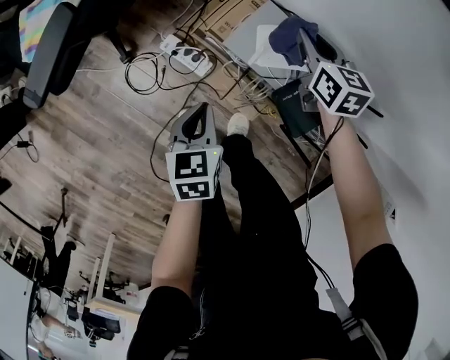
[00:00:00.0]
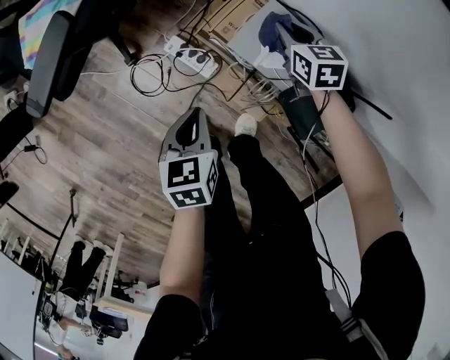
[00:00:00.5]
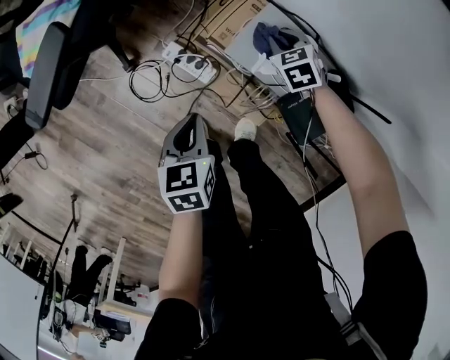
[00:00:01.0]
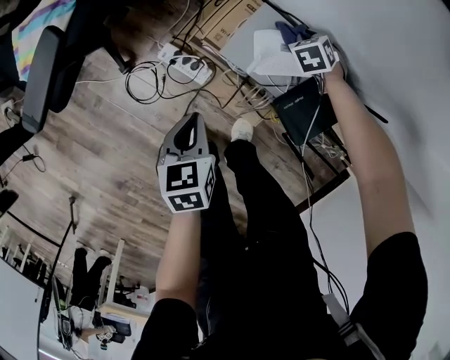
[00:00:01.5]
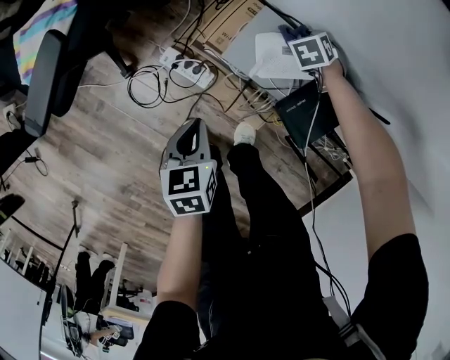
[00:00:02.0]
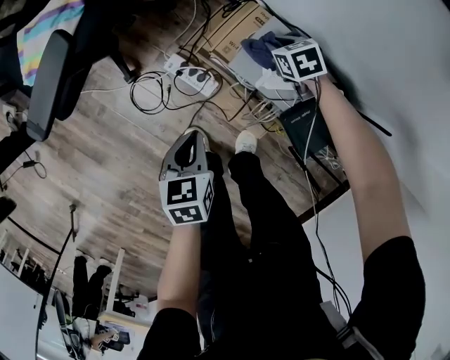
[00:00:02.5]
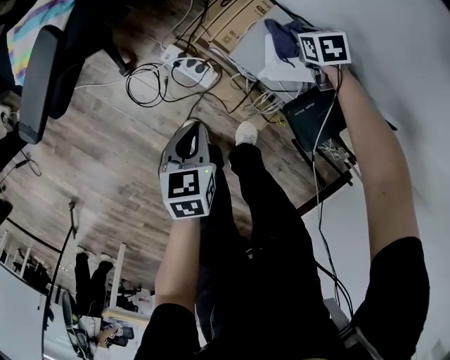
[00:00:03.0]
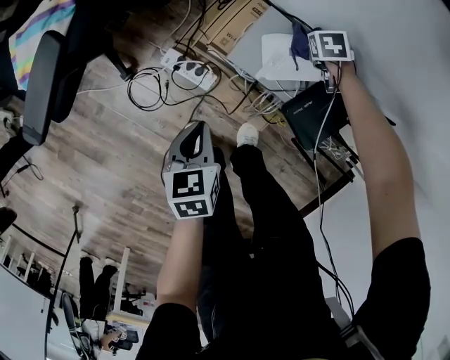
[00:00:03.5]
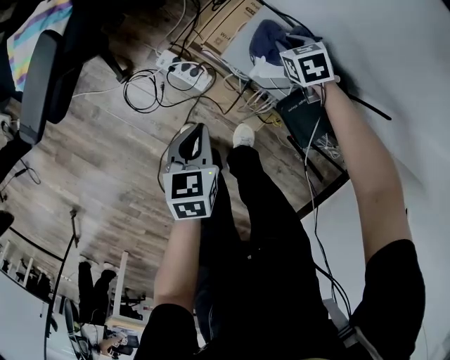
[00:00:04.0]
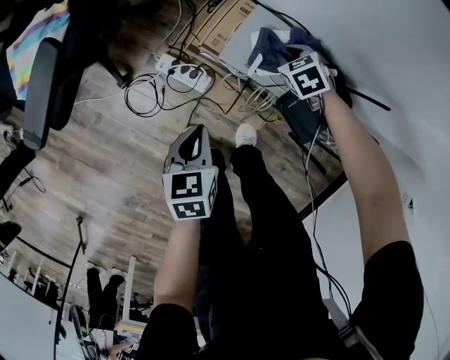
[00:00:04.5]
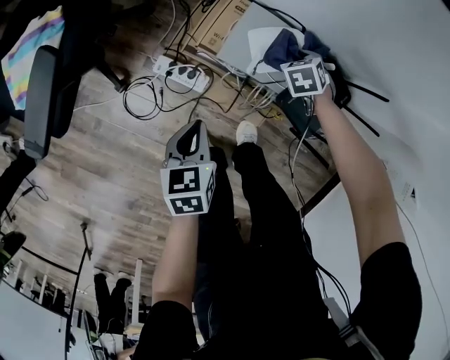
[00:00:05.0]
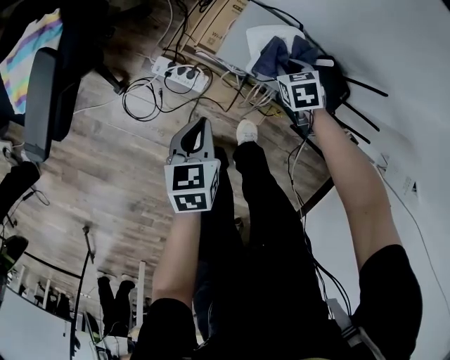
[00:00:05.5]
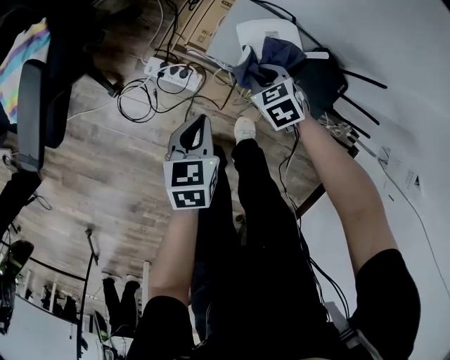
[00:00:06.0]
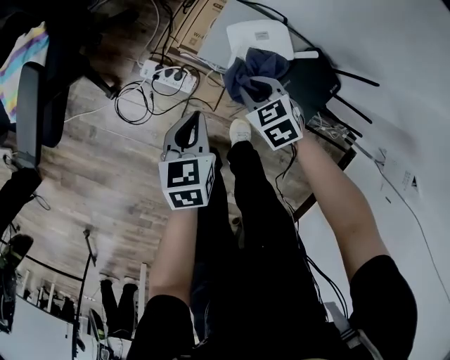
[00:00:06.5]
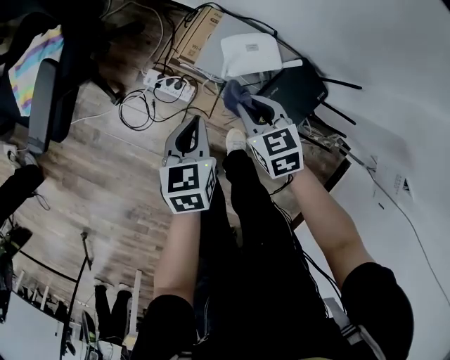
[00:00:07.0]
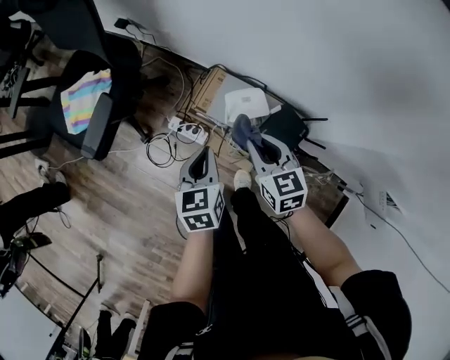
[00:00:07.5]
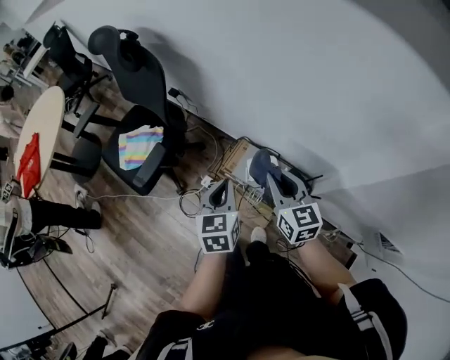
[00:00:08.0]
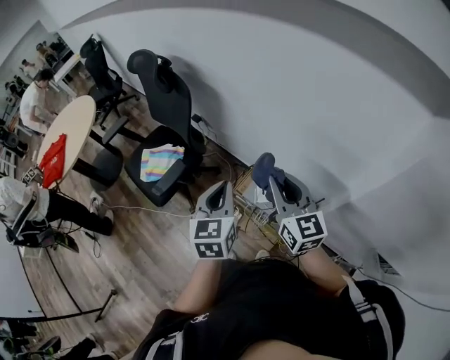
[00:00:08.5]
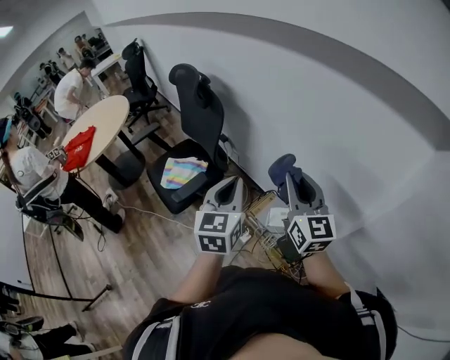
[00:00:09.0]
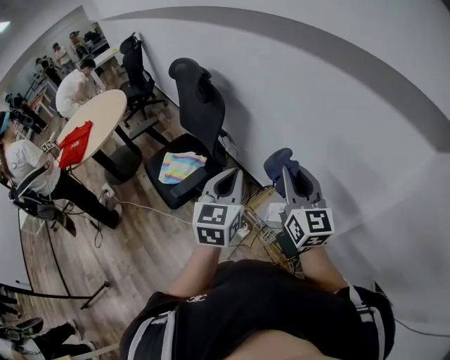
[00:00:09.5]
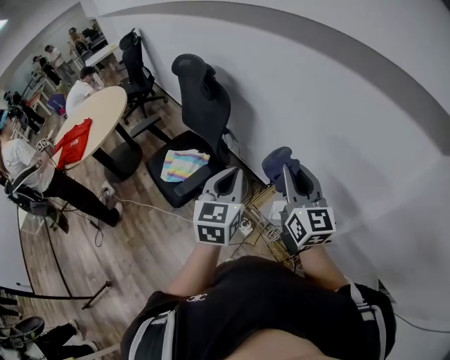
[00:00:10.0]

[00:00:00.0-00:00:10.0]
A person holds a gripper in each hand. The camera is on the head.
00:00:00.0 to 00:00:02.0: The right gripper heads downward, covering about 15 cm, and angles its fingers downward, by approximately 30 degrees.
00:00:02.0 to 00:00:04.0: The right gripper moves roughly 10 cm, and changes its angle by about 20 degrees.
00:00:04.0 to 00:00:06.0: The right gripper changes place by approximately 15 cm.
00:00:06.0 to 00:00:08.0: Both grippers travel together upward, about 50 cm. The right gripper angles its fingers upward, by roughly 50 degrees; the left gripper rotates roughly 30 degrees.
00:00:08.0 to 00:00:10.0: Both grippers move upward, some 25 cm. The right gripper changes its angle by some 20 degrees.

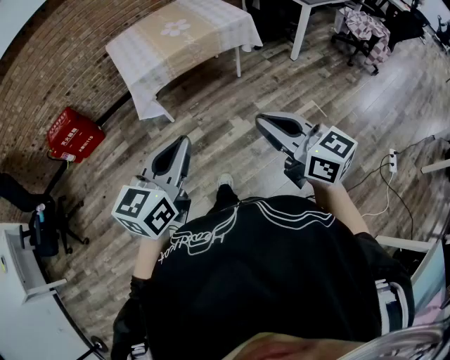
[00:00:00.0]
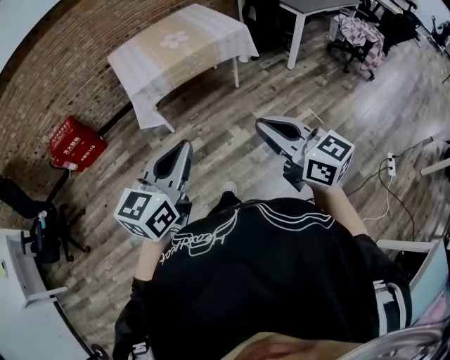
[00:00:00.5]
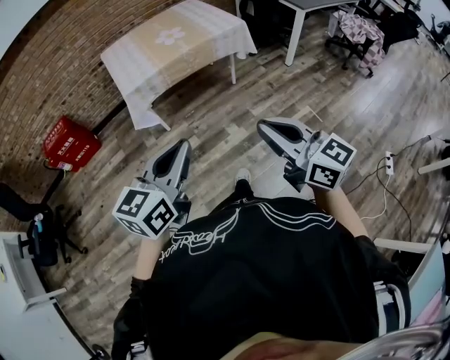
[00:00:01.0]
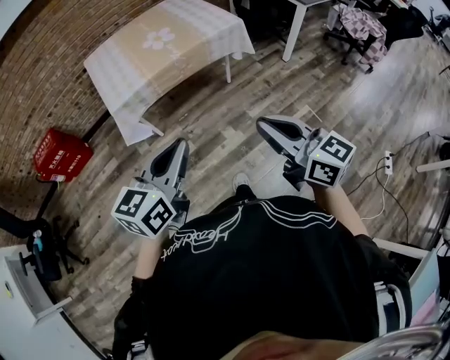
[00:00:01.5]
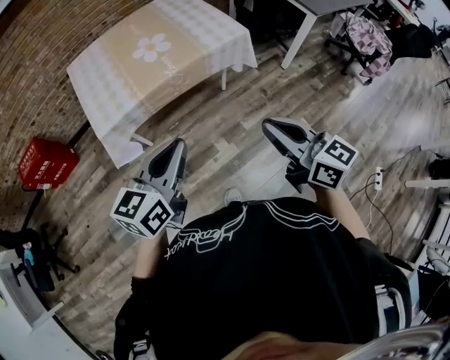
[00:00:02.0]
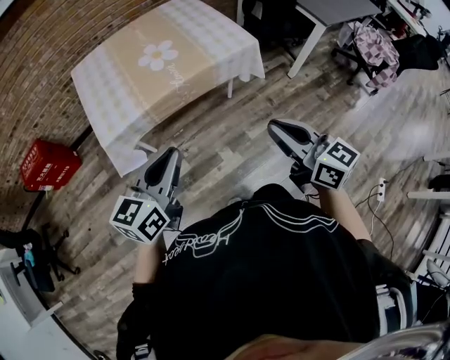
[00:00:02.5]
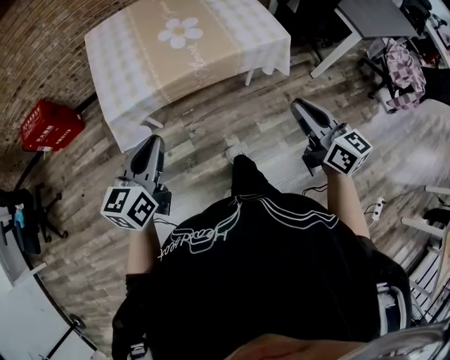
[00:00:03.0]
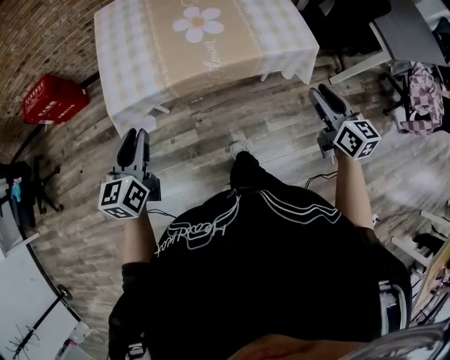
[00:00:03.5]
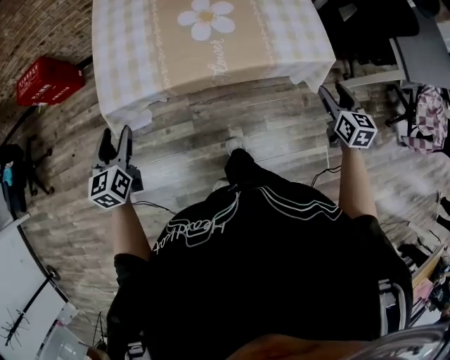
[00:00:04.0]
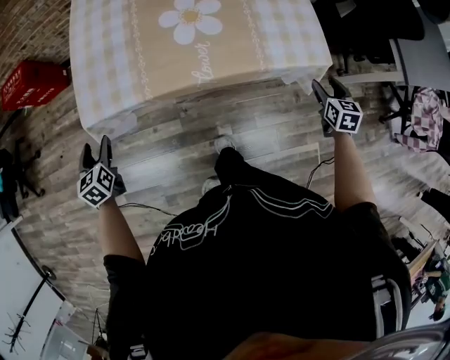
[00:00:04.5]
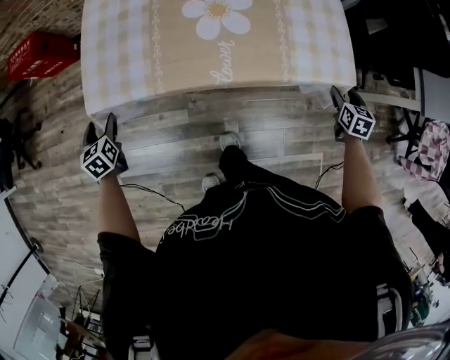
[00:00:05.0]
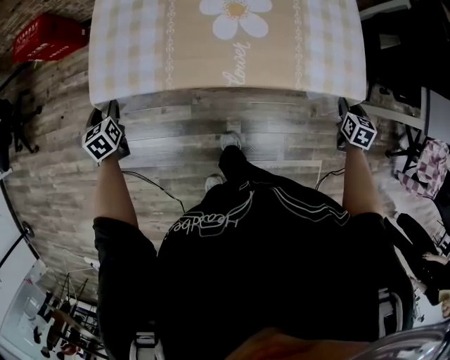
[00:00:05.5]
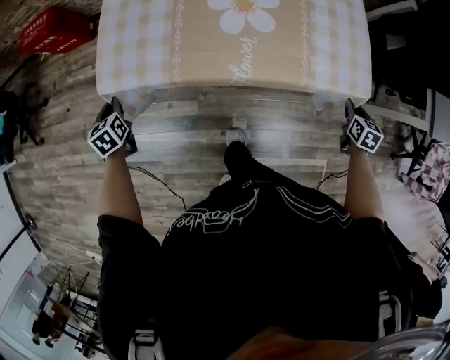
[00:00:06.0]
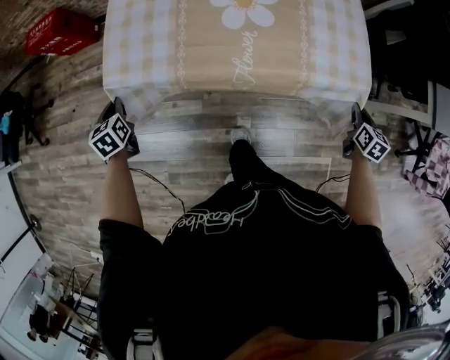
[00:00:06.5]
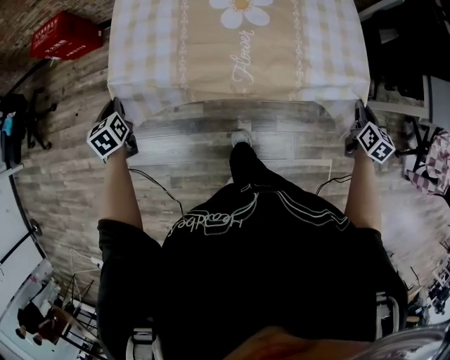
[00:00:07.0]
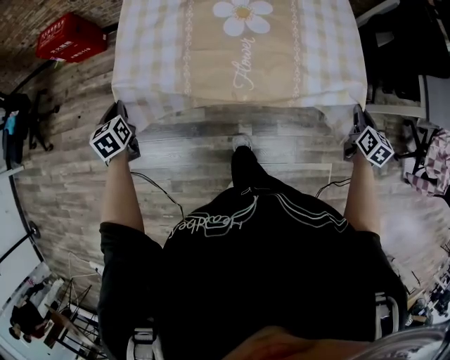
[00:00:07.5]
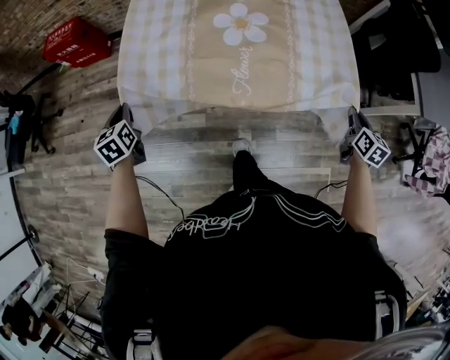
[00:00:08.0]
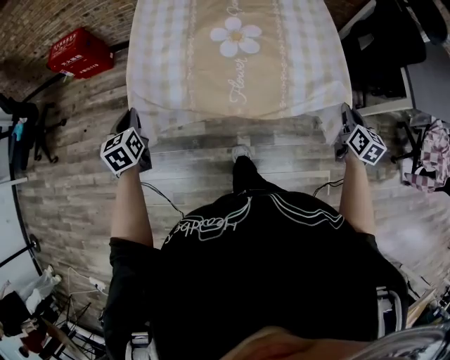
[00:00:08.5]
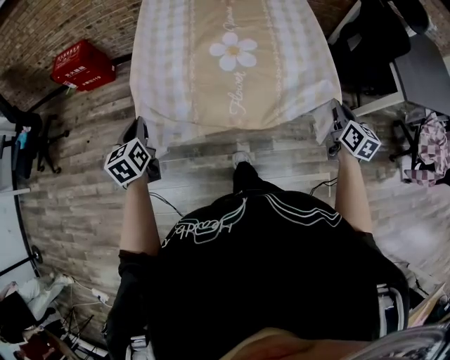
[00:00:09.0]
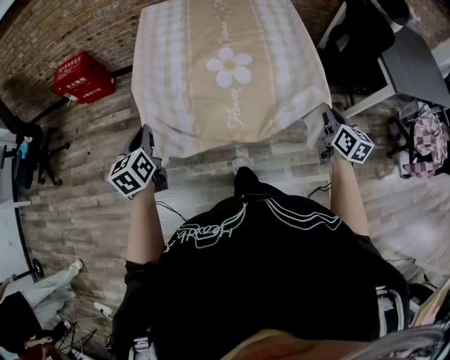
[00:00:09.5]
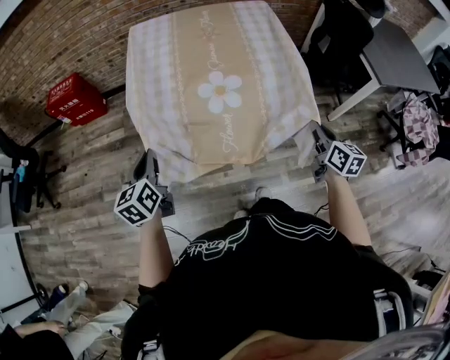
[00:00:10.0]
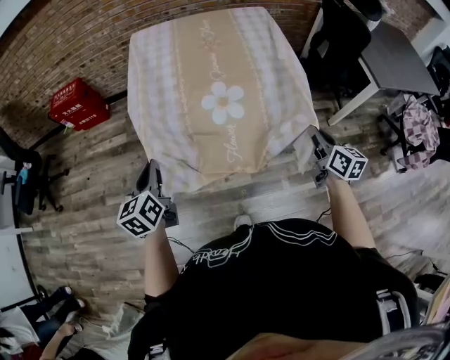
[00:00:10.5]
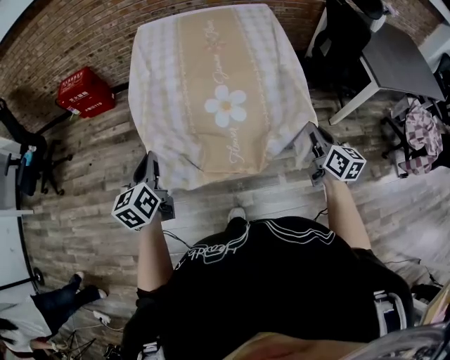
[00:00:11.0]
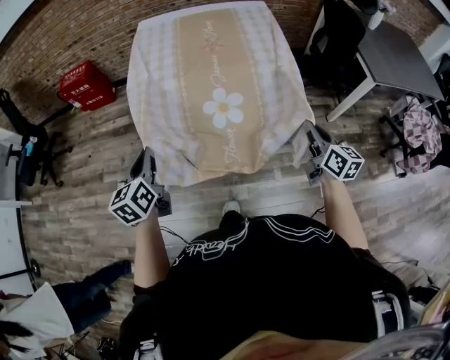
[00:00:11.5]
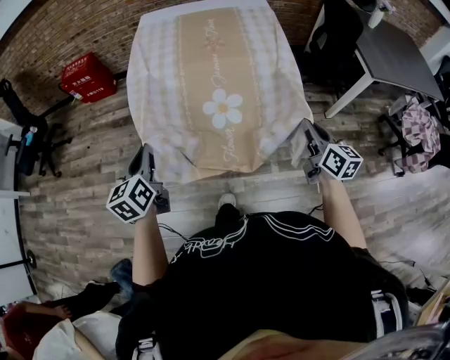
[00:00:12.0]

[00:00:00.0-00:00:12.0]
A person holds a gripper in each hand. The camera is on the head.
00:00:00.0 to 00:00:02.0: Both grippers travel together forward, approximately 30 cm.
00:00:02.0 to 00:00:04.0: The right gripper shifts some 50 cm forward, downward and to the right, rotates approximately 30 degrees, and opens. Meanwhile the left gripper shifts approximately 35 cm to the left, forward and downward, rotates some 50 degrees, and opens.
00:00:04.0 to 00:00:06.0: The right gripper heads downward, to the right and forward, covering some 20 cm, and closes up, while the left gripper shifts approximately 20 cm downward, to the left and forward, changes its angle by roughly 30 degrees, and closes its fingers.
00:00:06.0 to 00:00:08.0: Both grippers travel together upward and backward, approximately 15 cm.
00:00:08.0 to 00:00:10.0: The left gripper goes some 25 cm backward, upward and to the right, and changes its angle by about 30 degrees, while the right gripper shifts about 25 cm backward, to the left and upward.
00:00:10.0 to 00:00:12.0: Both grippers travel together backward, roughly 15 cm.

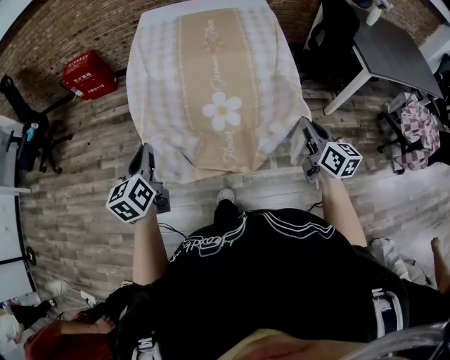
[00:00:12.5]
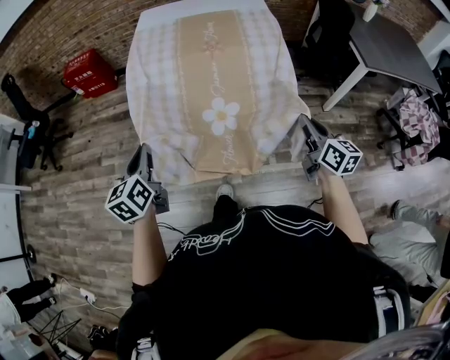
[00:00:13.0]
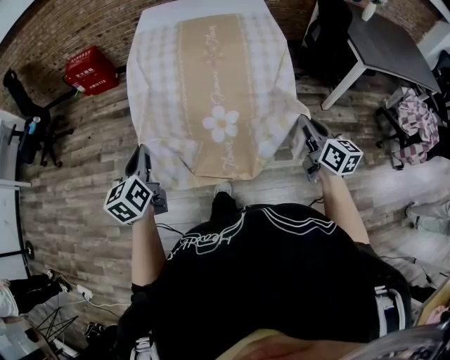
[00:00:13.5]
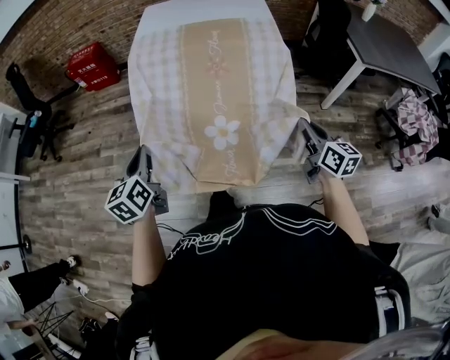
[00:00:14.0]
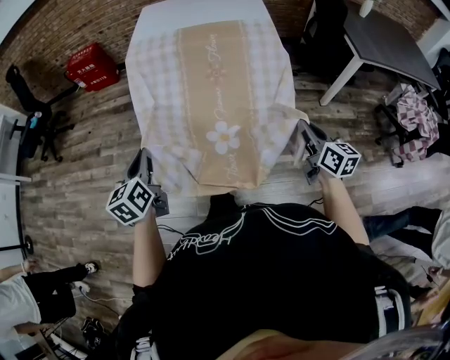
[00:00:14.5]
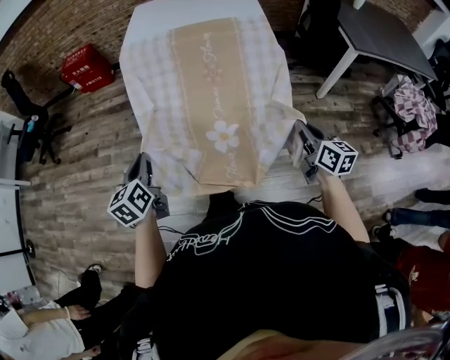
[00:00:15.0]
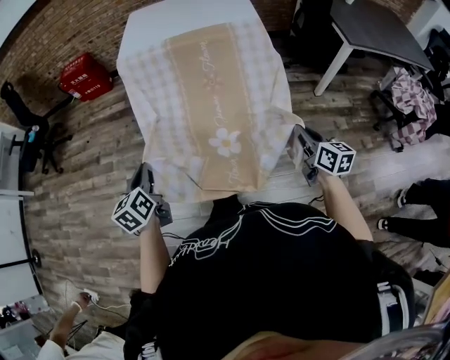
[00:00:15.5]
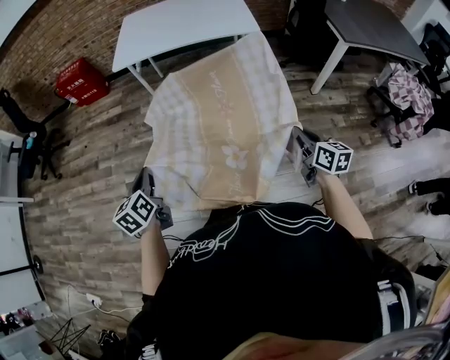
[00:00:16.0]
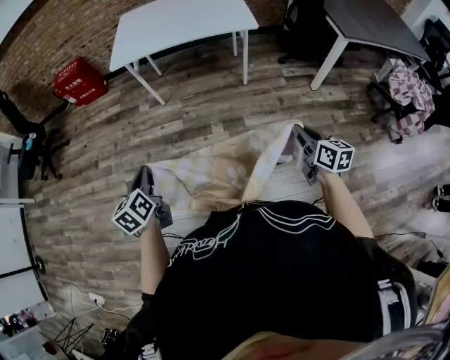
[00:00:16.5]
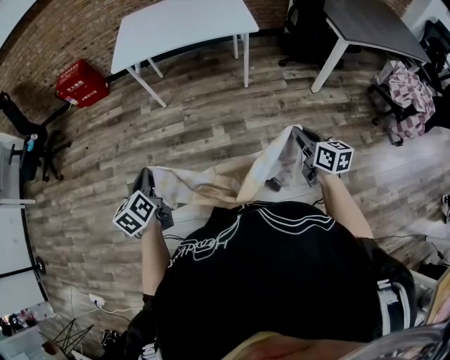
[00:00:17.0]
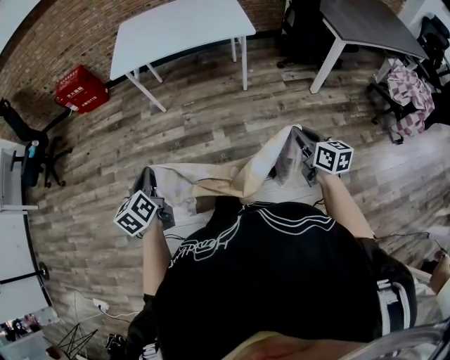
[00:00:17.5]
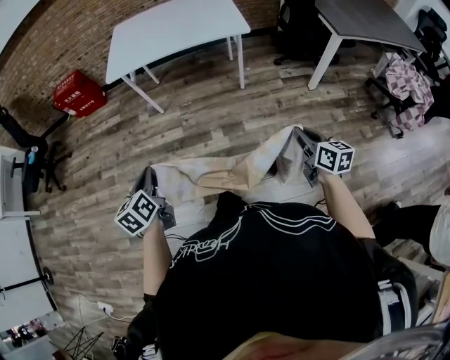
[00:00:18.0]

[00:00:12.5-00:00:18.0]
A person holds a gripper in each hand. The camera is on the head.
00:00:12.5 to 00:00:14.5: The two grippers go some 10 cm backward.
00:00:14.5 to 00:00:16.0: The grippers both shift downward by roughly 5 cm.
00:00:16.0 to 00:00:18.0: The grippers move only a little.
